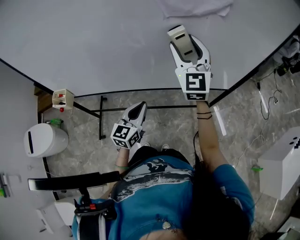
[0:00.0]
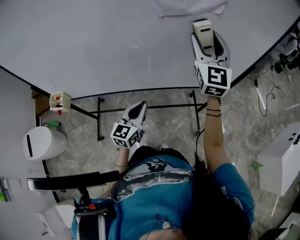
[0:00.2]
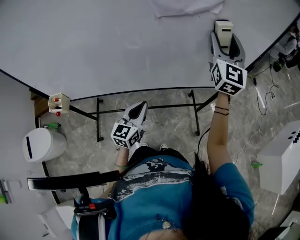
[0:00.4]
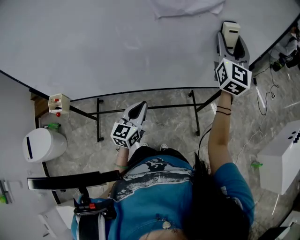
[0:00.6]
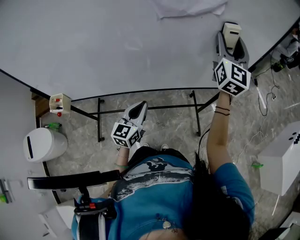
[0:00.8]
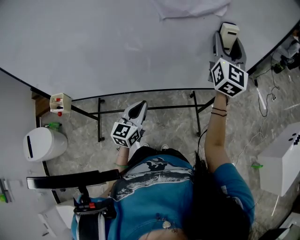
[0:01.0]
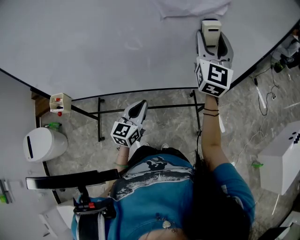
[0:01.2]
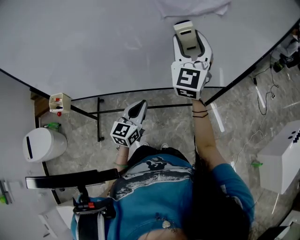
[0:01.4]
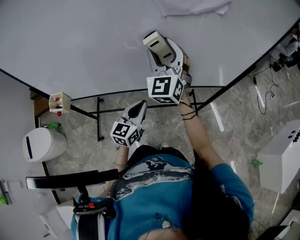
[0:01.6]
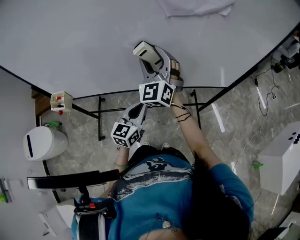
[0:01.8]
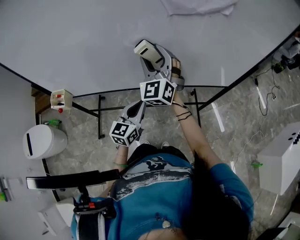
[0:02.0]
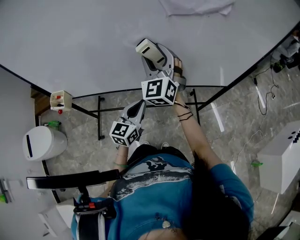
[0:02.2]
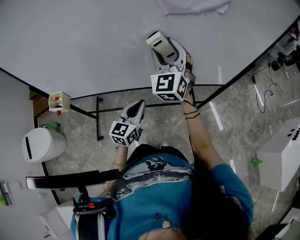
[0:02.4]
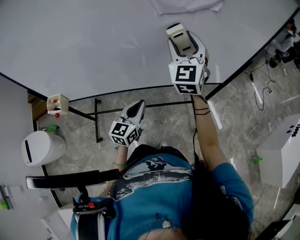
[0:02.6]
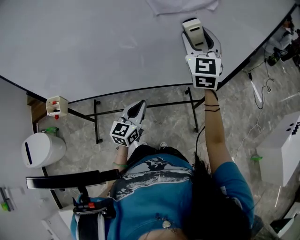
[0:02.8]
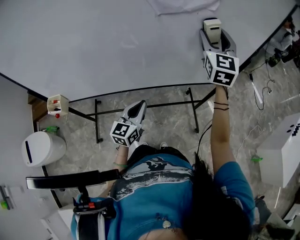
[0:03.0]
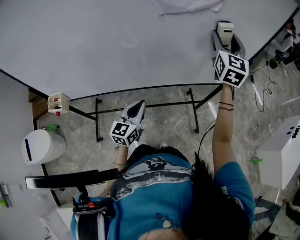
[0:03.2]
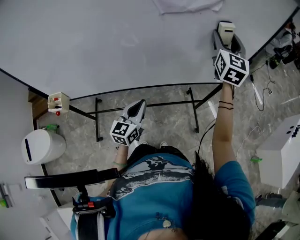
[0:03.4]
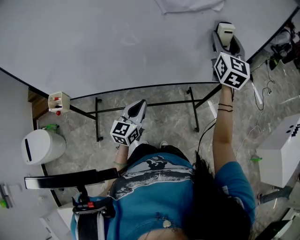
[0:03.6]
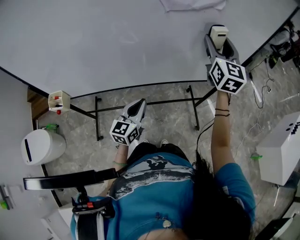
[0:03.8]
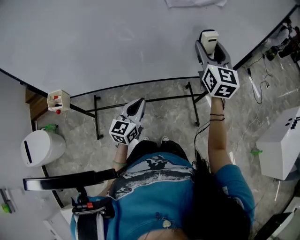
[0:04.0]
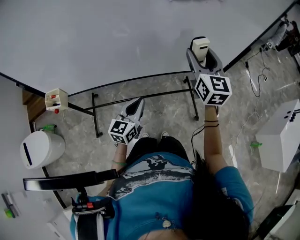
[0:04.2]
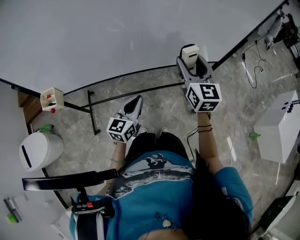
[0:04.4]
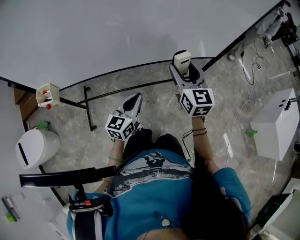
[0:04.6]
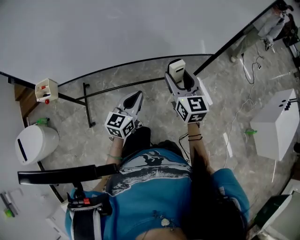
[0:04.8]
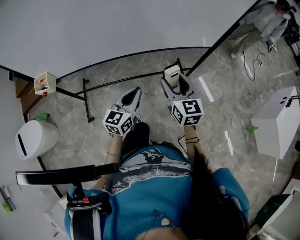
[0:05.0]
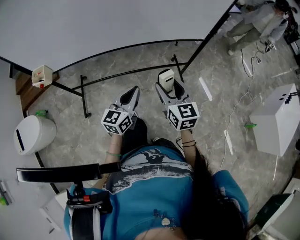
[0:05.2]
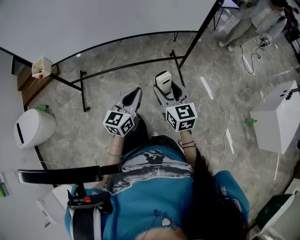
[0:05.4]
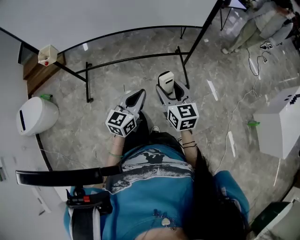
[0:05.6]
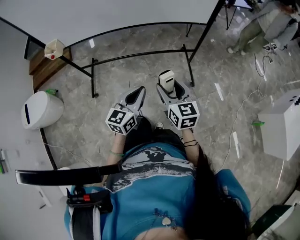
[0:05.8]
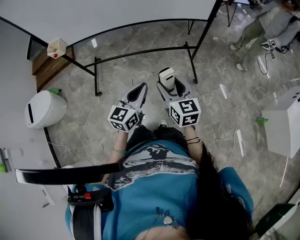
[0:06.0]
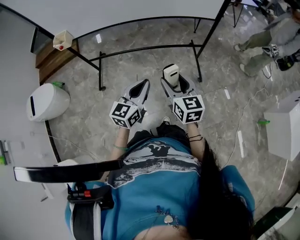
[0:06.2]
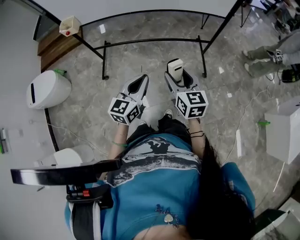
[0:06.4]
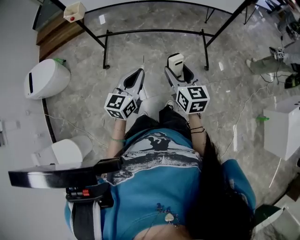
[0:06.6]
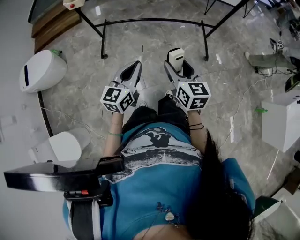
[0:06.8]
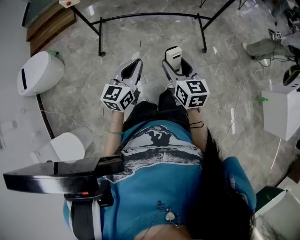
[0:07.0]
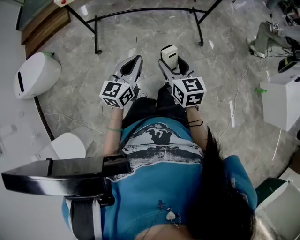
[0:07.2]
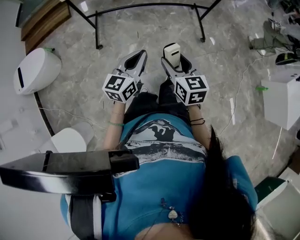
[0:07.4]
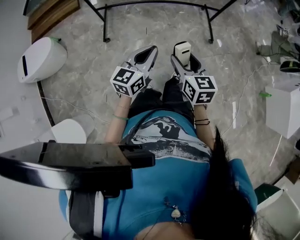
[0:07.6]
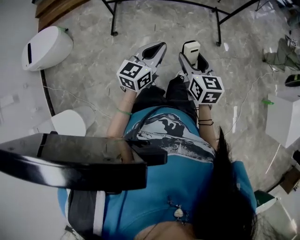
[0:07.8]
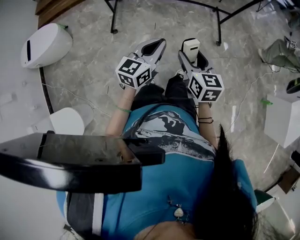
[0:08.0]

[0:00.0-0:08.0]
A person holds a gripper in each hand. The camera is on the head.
0:00.0 to 0:01.6: The right gripper travels to the right and back again, about 15 cm each way.
0:01.6 to 0:03.2: The right gripper is displaced to the right by about 25 cm, and rotates approximately 30 degrees.
0:03.2 to 0:04.8: The left gripper moves backward, some 10 cm, while the right gripper is displaced backward, downward and to the left by approximately 35 cm, and swivels some 30 degrees.
0:04.8 to 0:06.4: The two grippers go approximately 30 cm backward.
0:06.4 to 0:08.0: Both grippers move backward and to the left, approximately 15 cm.

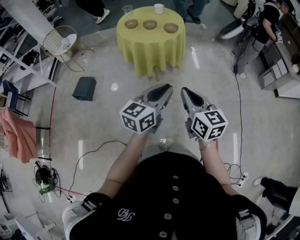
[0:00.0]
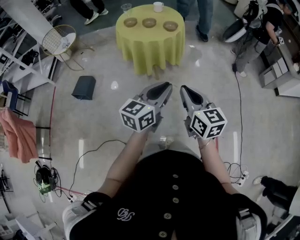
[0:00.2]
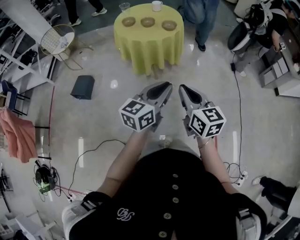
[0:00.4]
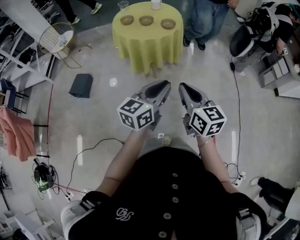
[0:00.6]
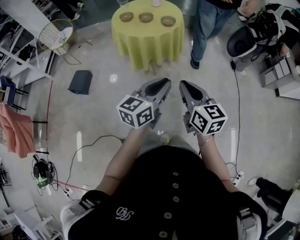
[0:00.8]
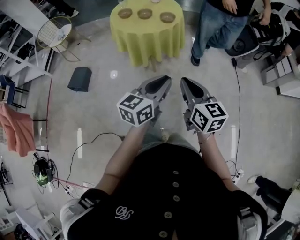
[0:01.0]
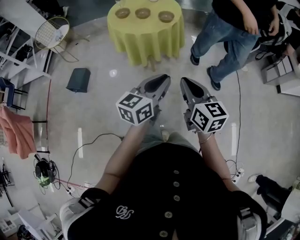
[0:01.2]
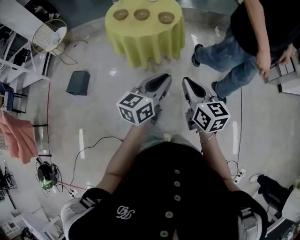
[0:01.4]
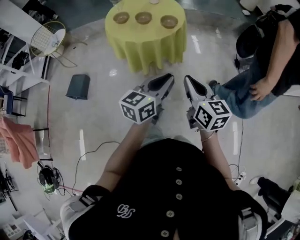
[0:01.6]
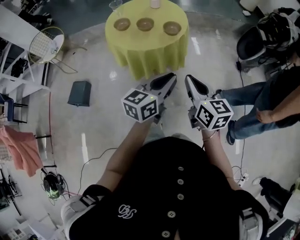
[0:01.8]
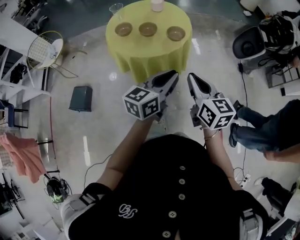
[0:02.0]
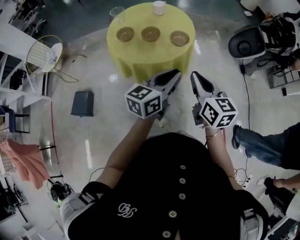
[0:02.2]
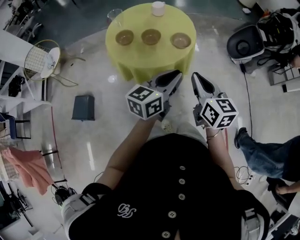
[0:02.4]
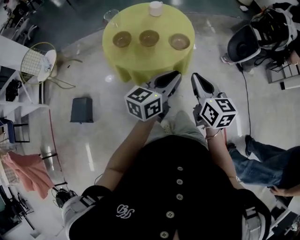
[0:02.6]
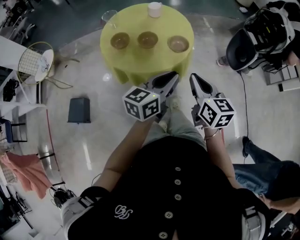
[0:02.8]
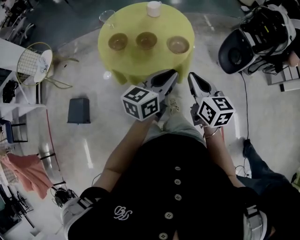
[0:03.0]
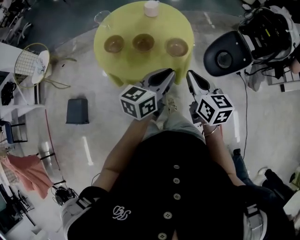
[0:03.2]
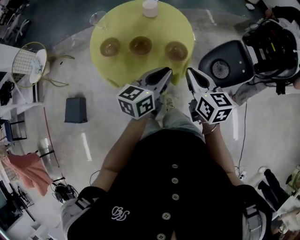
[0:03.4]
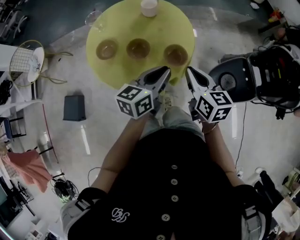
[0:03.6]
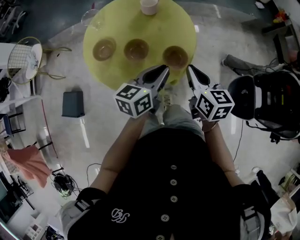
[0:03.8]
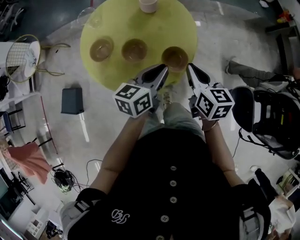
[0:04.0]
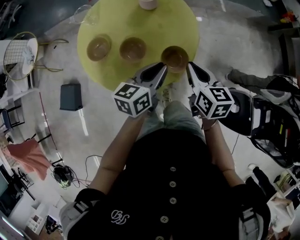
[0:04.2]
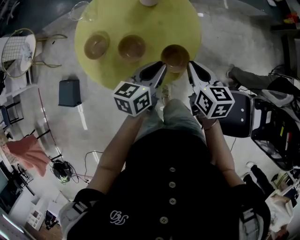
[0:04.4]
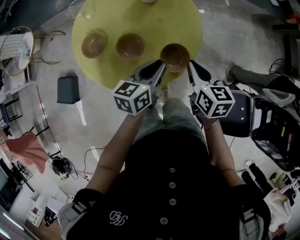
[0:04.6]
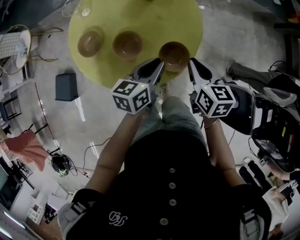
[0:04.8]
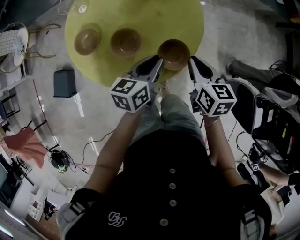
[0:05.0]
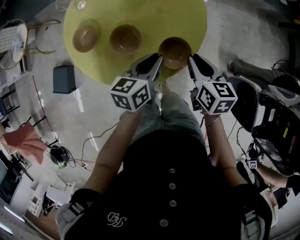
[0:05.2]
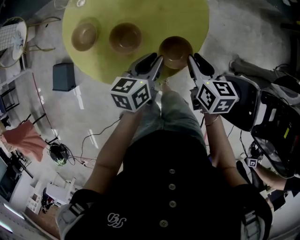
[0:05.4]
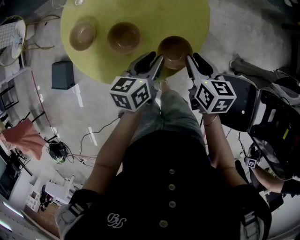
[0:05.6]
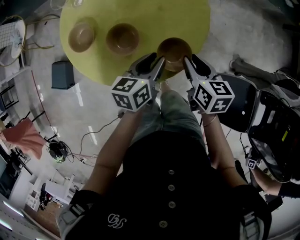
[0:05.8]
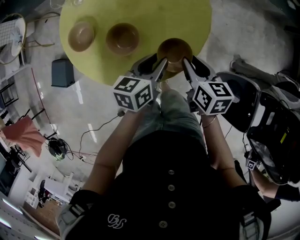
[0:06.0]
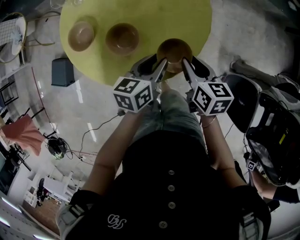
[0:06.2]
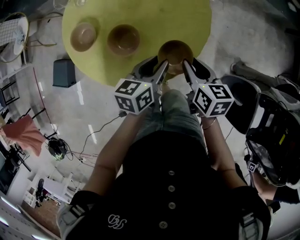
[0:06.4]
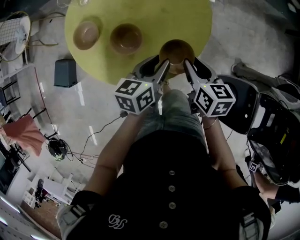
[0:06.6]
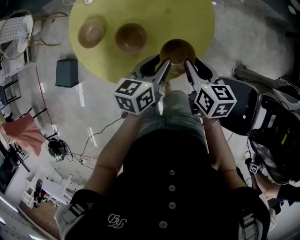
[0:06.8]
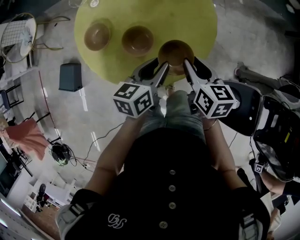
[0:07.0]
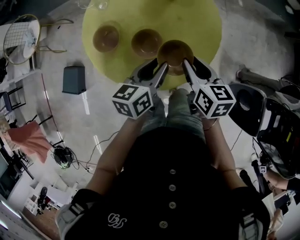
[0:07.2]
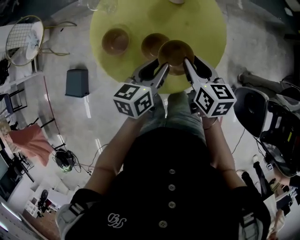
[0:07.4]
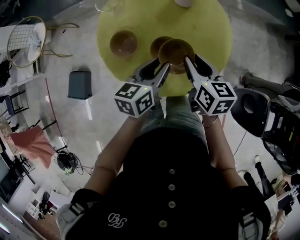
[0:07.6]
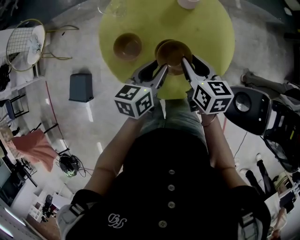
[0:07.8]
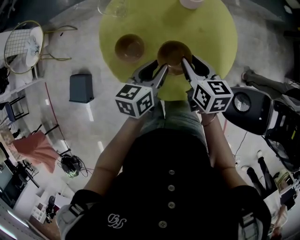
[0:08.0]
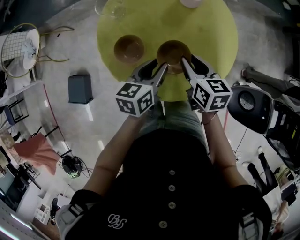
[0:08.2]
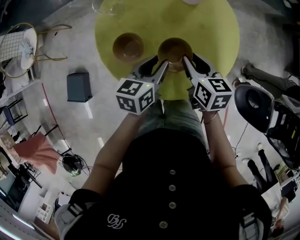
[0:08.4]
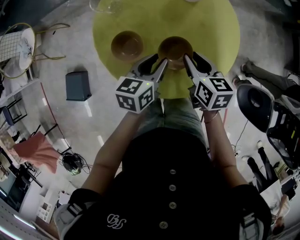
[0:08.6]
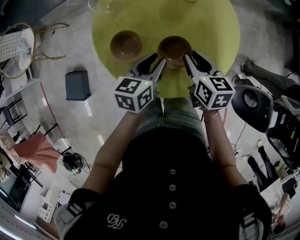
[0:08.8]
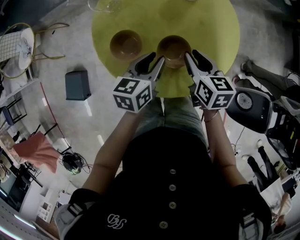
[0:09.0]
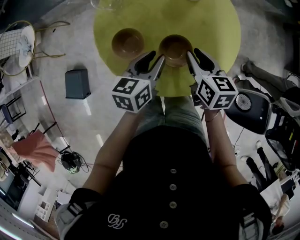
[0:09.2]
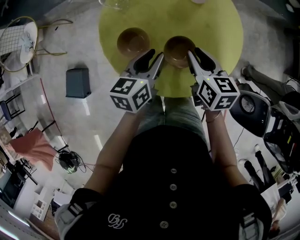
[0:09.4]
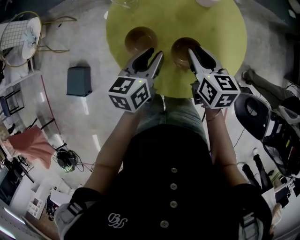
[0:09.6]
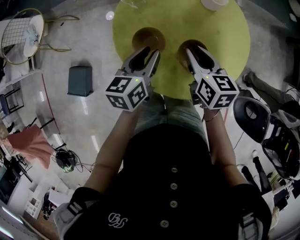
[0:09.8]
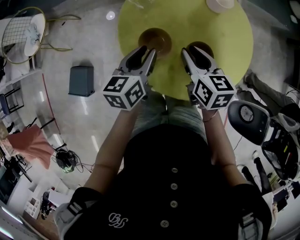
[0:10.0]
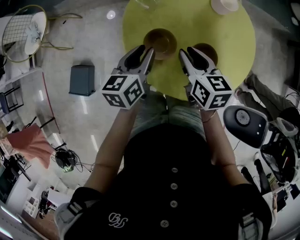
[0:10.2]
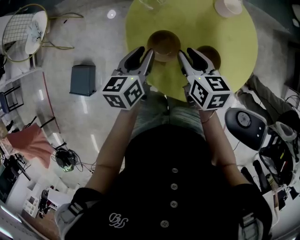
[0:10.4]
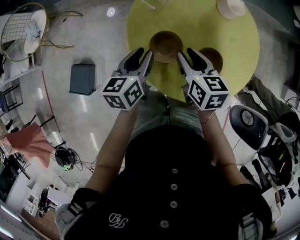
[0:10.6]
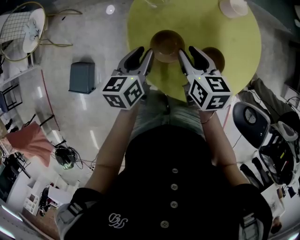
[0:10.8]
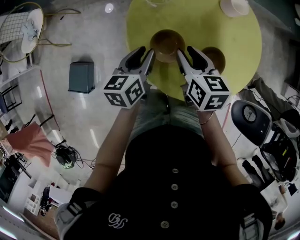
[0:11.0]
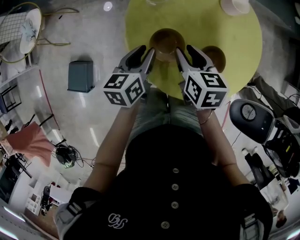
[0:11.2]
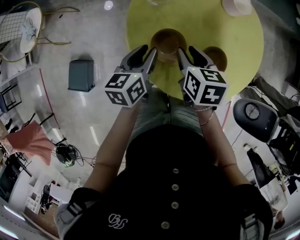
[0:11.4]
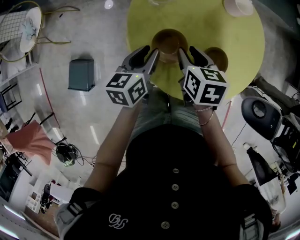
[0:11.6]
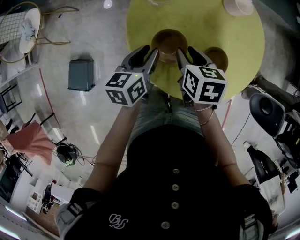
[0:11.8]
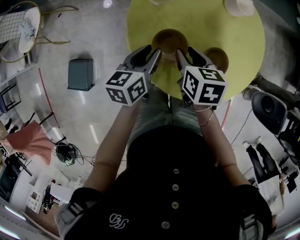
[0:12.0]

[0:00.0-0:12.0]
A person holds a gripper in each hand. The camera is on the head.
0:00.0 to 0:01.6: The two grippers go about 20 cm forward.
0:01.6 to 0:03.0: Both grippers travel together forward and to the left, about 25 cm.
0:03.0 to 0:04.4: The two grippers go approximately 25 cm forward and downward. The left gripper changes its angle by some 20 degrees.
0:04.4 to 0:06.0: The two grippers go some 5 cm downward. The right gripper opens up.
0:06.0 to 0:07.6: Both grippers travel together to the left and upward, about 15 cm.
0:07.6 to 0:09.0: The left gripper moves downward and to the left, about 5 cm. Meanwhile the right gripper moves downward, some 5 cm.
0:09.0 to 0:10.4: The grippers both shift to the left by roughly 15 cm.
0:10.4 to 0:12.0: The grippers stay close to where they were, moving slightly.

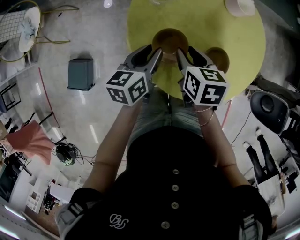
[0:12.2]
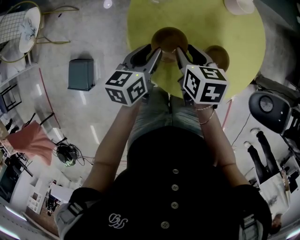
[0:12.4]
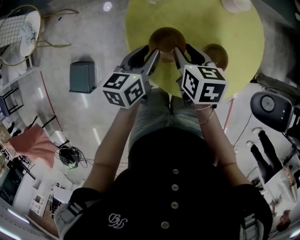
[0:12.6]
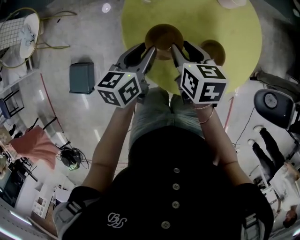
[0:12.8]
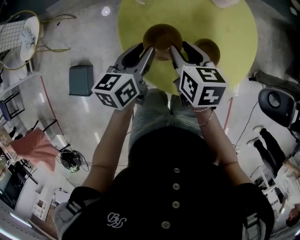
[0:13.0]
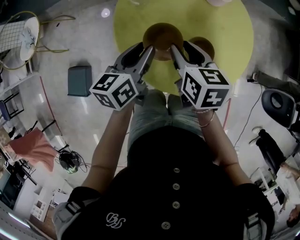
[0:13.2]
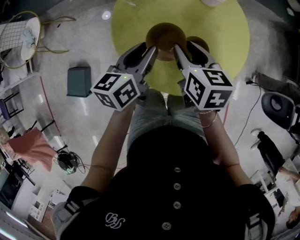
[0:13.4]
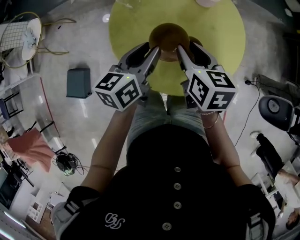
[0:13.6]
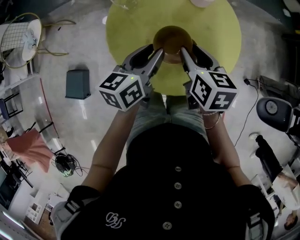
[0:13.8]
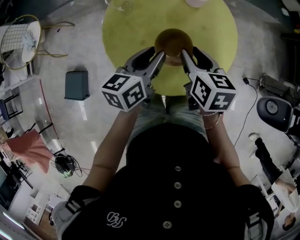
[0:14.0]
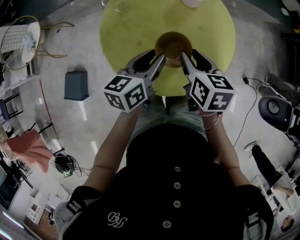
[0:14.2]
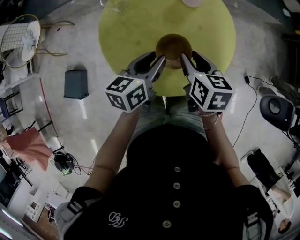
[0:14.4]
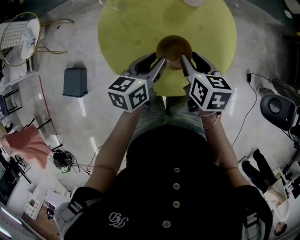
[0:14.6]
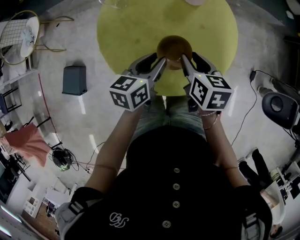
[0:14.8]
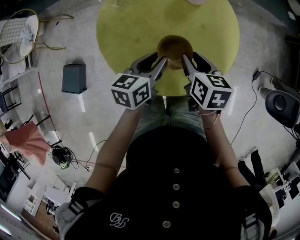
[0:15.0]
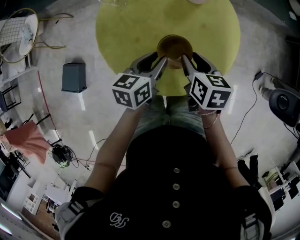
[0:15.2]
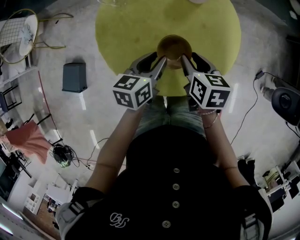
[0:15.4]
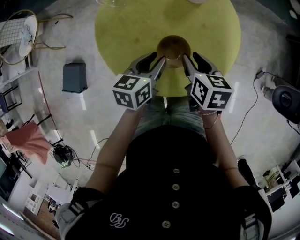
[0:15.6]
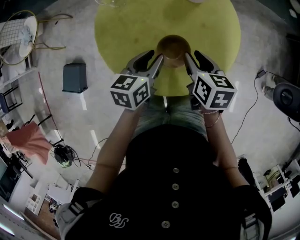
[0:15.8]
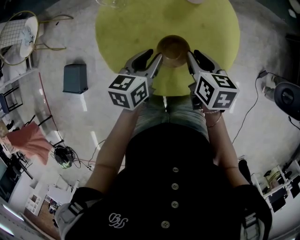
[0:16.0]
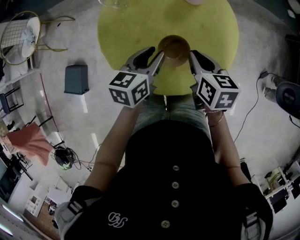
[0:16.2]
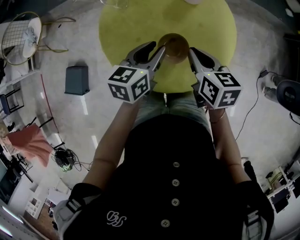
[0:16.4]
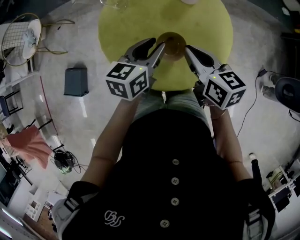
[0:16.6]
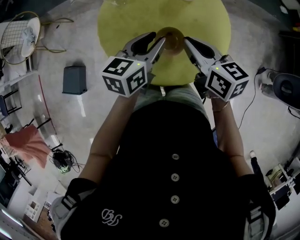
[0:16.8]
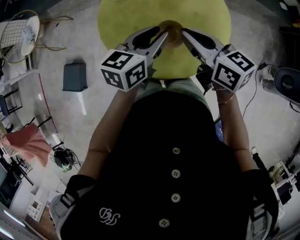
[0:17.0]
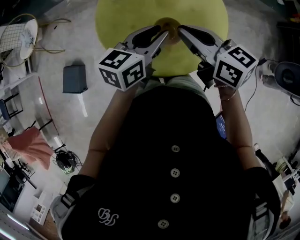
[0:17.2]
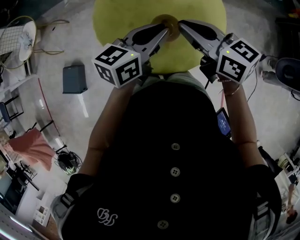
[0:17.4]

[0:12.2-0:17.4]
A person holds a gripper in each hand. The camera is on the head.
0:12.2 to 0:14.0: Both grippers move to the right and upward, about 15 cm.
0:14.0 to 0:15.6: The two grippers go about 5 cm downward.
0:15.6 to 0:17.4: The grippers both shift upward by approximately 15 cm. The right gripper changes its angle by roughly 40 degrees, and closes its fingers. The left gripper changes its angle by approximately 20 degrees.
